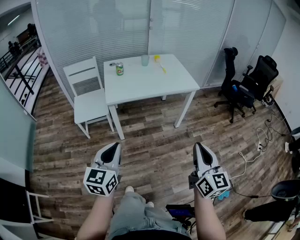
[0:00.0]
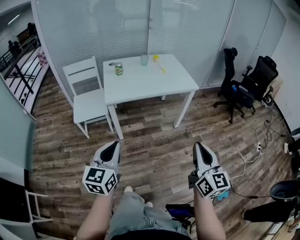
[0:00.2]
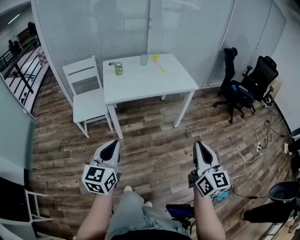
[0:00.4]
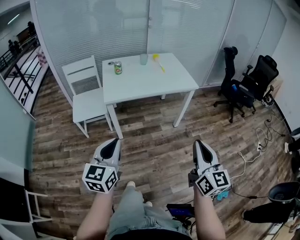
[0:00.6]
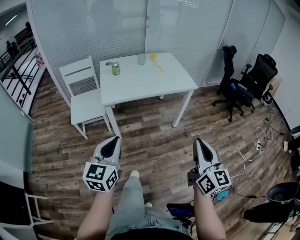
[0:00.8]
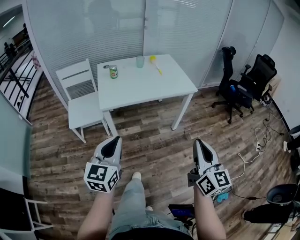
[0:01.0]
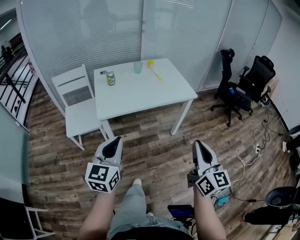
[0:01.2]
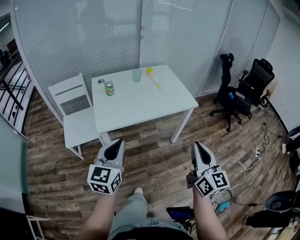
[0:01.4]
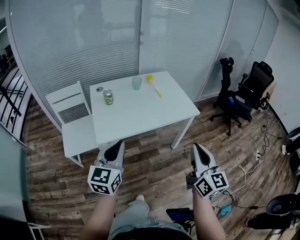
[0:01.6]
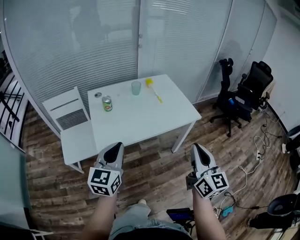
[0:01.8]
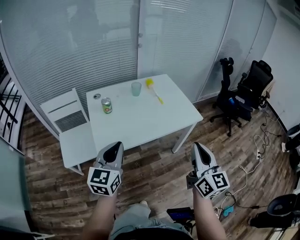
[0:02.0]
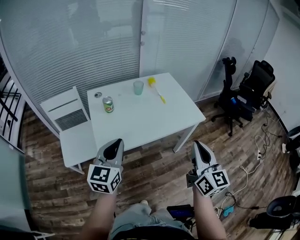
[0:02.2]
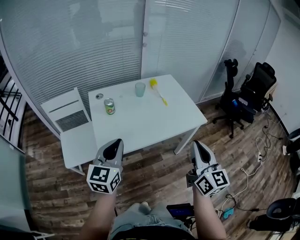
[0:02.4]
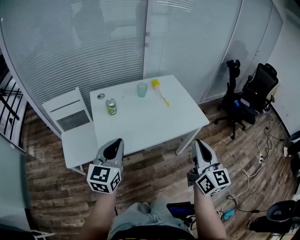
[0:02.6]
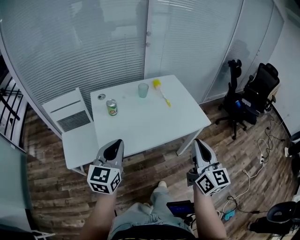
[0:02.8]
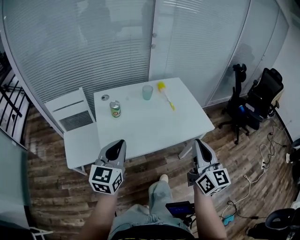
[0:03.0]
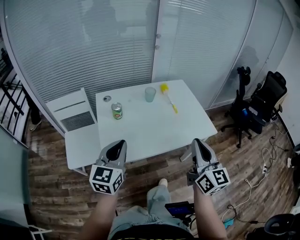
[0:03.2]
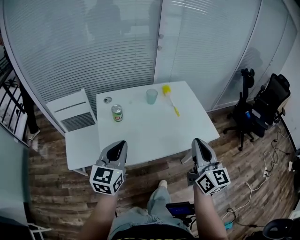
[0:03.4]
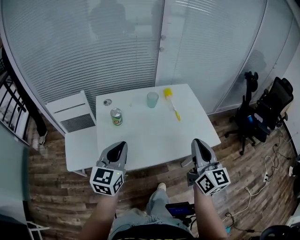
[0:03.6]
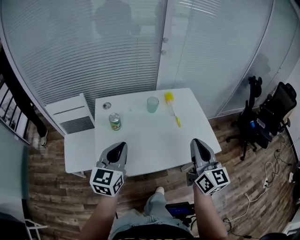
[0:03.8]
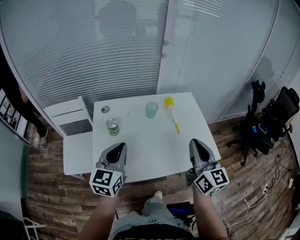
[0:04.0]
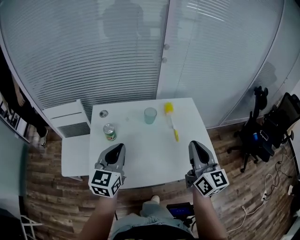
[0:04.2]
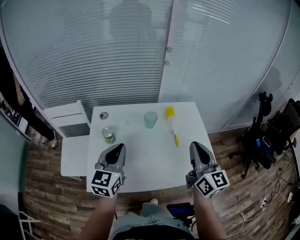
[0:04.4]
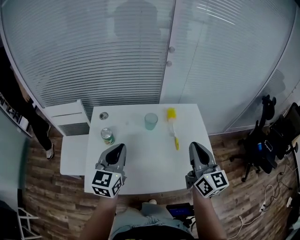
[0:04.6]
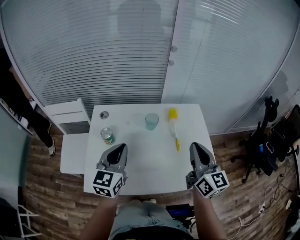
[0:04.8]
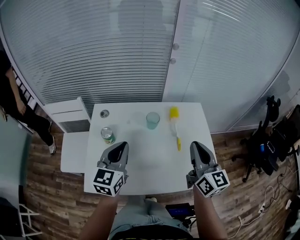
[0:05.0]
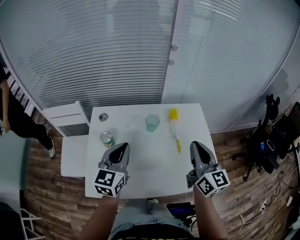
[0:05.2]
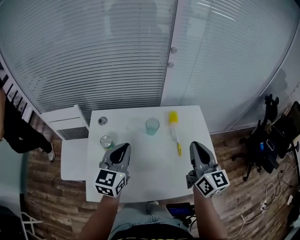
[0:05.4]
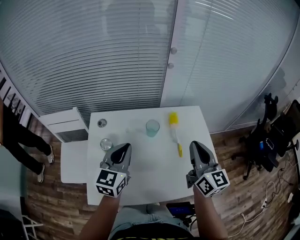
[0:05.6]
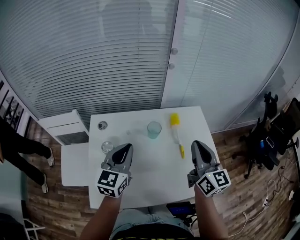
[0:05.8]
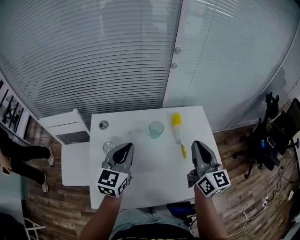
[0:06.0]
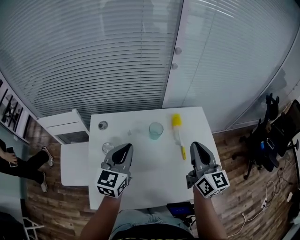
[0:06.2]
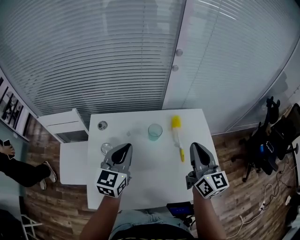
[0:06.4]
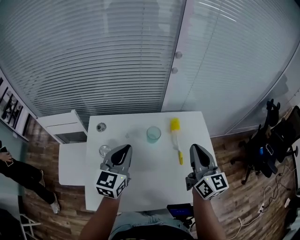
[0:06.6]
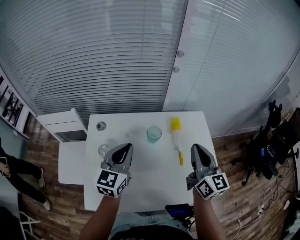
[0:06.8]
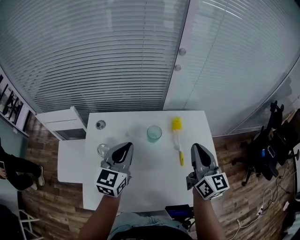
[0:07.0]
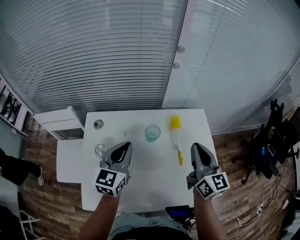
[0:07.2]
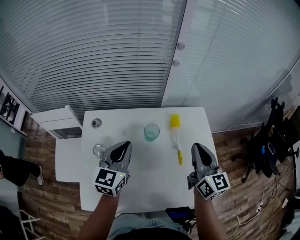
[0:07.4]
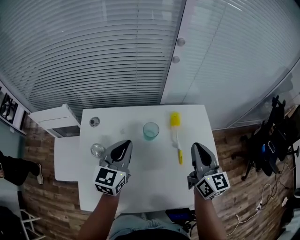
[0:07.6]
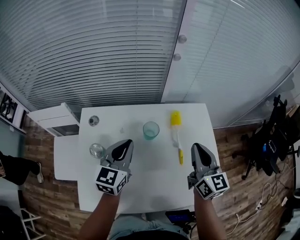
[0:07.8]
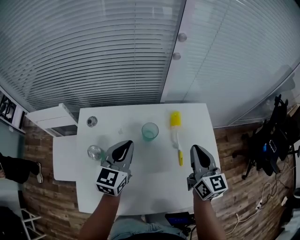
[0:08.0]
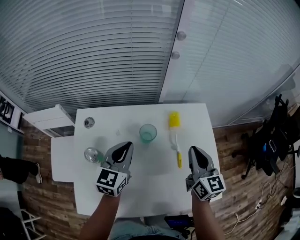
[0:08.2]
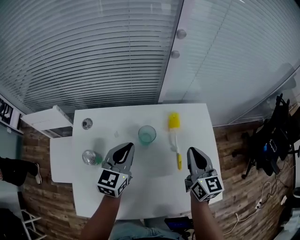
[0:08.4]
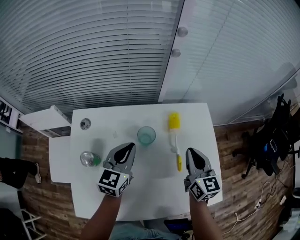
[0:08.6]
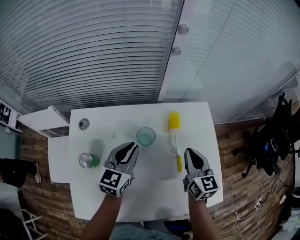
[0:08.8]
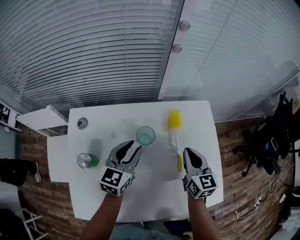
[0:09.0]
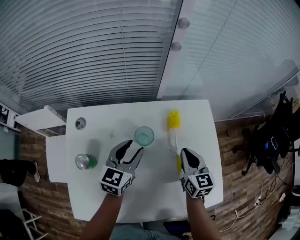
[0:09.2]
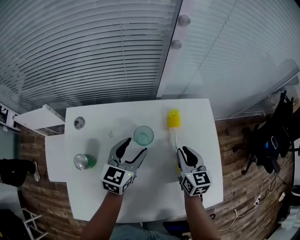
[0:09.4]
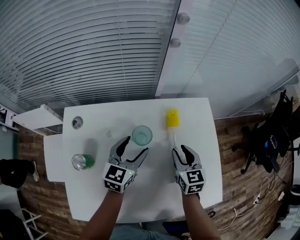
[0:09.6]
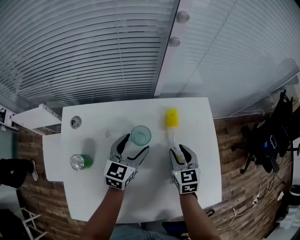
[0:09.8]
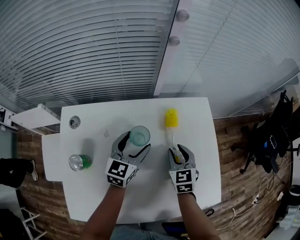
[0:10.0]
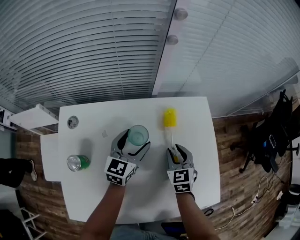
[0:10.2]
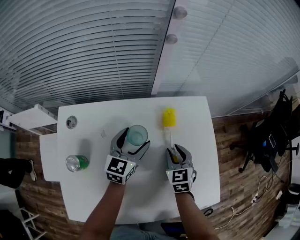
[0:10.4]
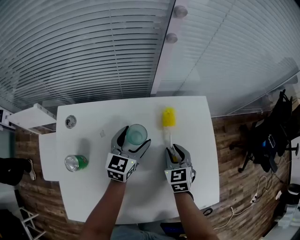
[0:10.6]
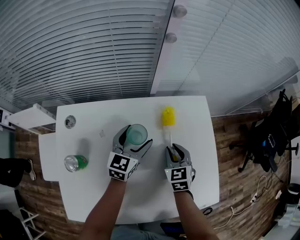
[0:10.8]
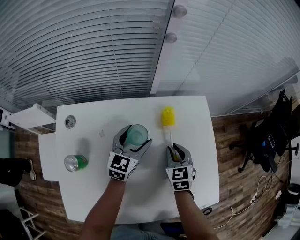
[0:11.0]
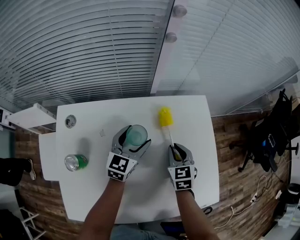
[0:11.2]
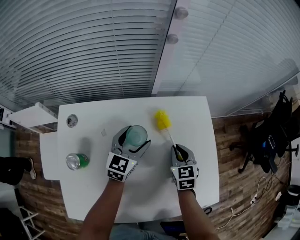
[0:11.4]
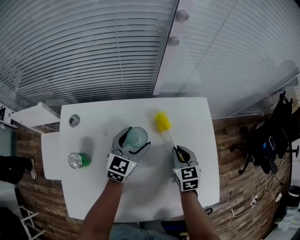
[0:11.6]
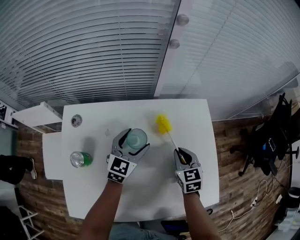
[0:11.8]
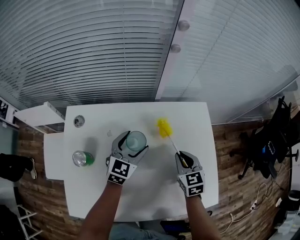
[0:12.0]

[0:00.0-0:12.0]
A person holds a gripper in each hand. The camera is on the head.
0:00.0 to 0:01.6: The two grippers go approximately 25 cm forward.
0:01.6 to 0:03.0: The right gripper shifts roughly 15 cm forward. The left gripper travels forward and to the left by approximately 15 cm.
0:03.0 to 0:04.4: The grippers both shift forward by about 25 cm.
0:04.4 to 0:06.0: Both grippers travel together forward, some 10 cm.
0:06.0 to 0:07.6: Both grippers travel together forward, approximately 5 cm.
0:07.6 to 0:09.0: The left gripper goes about 10 cm downward and forward; the right gripper goes approximately 15 cm downward.
0:09.0 to 0:10.4: The right gripper travels downward by approximately 10 cm, rotates some 30 degrees, and opens up; the left gripper moves forward and downward, some 10 cm, and opens.
0:10.4 to 0:12.0: The right gripper closes its fingers.

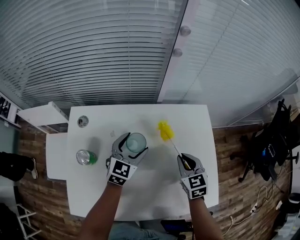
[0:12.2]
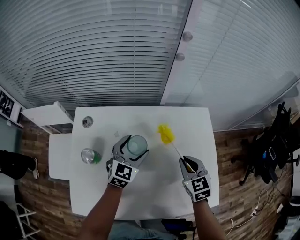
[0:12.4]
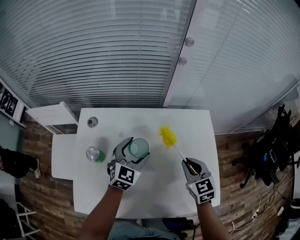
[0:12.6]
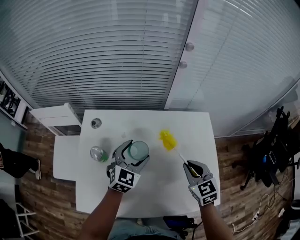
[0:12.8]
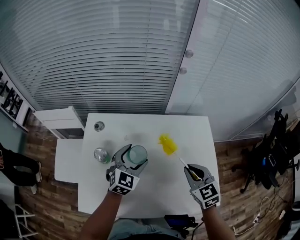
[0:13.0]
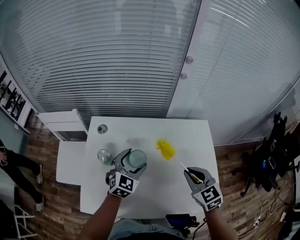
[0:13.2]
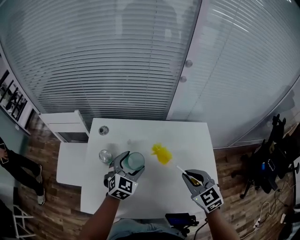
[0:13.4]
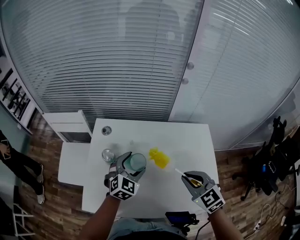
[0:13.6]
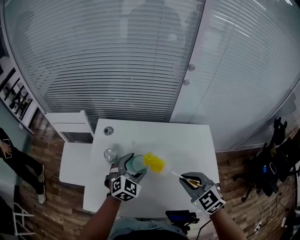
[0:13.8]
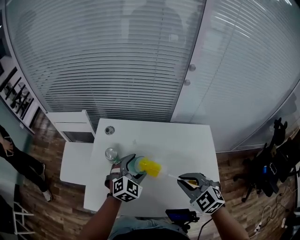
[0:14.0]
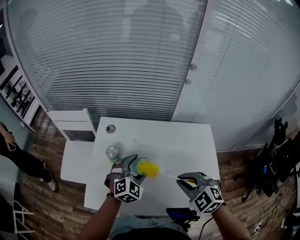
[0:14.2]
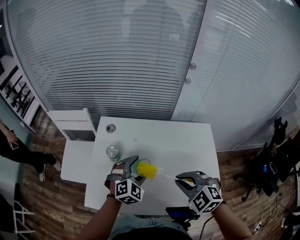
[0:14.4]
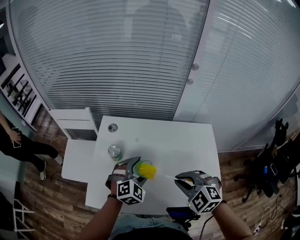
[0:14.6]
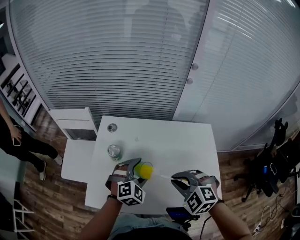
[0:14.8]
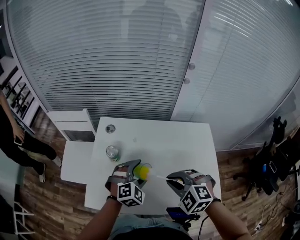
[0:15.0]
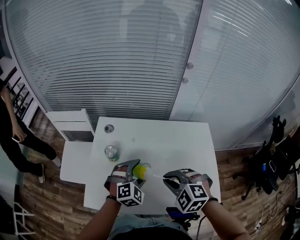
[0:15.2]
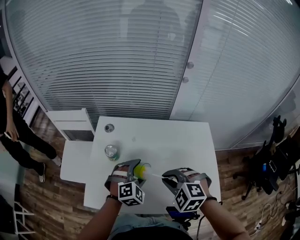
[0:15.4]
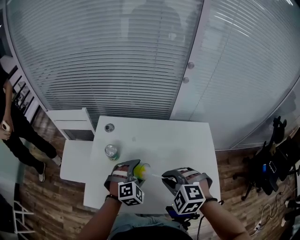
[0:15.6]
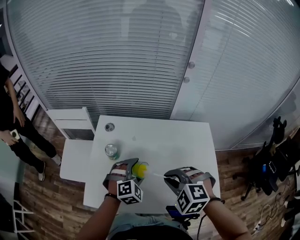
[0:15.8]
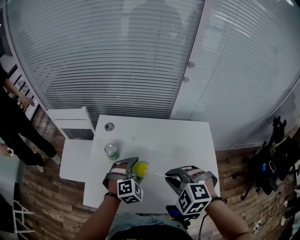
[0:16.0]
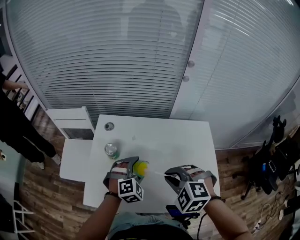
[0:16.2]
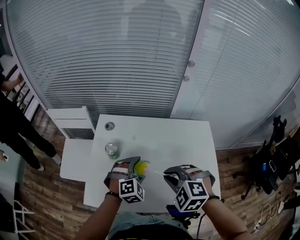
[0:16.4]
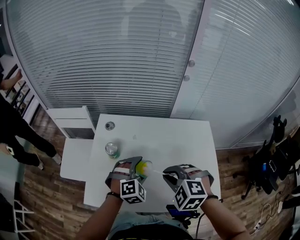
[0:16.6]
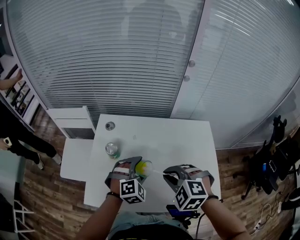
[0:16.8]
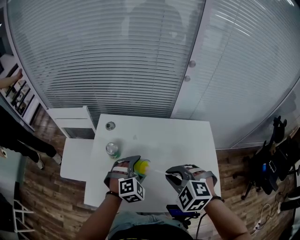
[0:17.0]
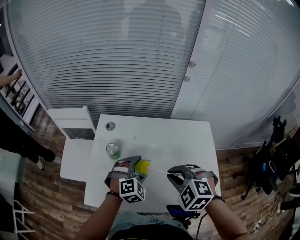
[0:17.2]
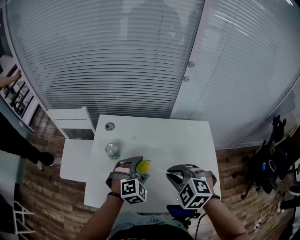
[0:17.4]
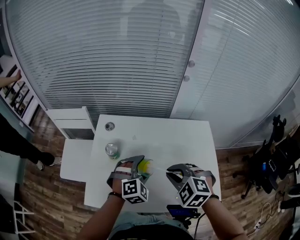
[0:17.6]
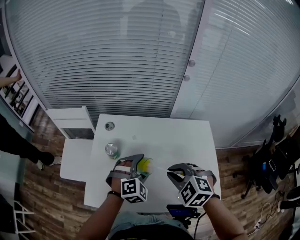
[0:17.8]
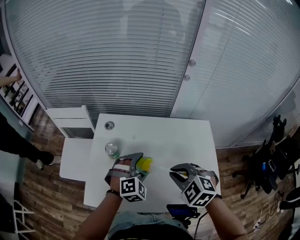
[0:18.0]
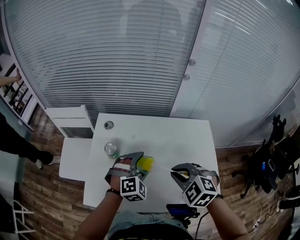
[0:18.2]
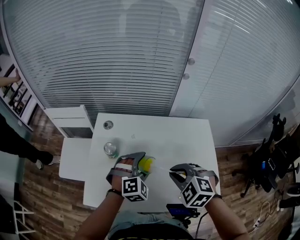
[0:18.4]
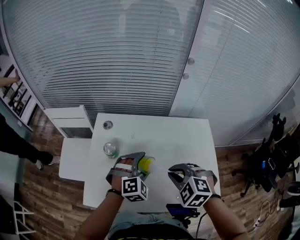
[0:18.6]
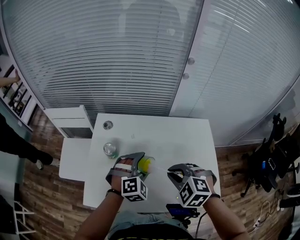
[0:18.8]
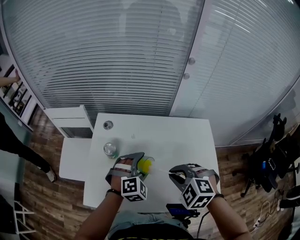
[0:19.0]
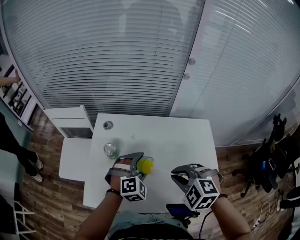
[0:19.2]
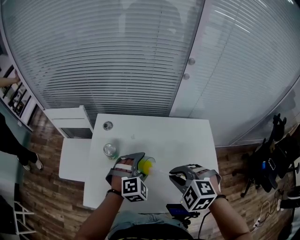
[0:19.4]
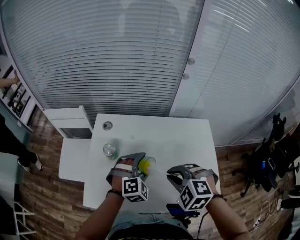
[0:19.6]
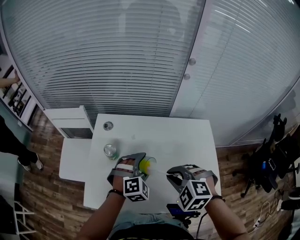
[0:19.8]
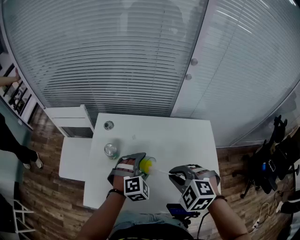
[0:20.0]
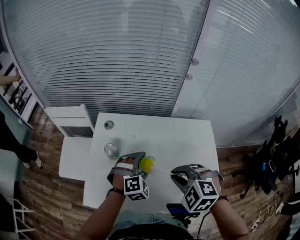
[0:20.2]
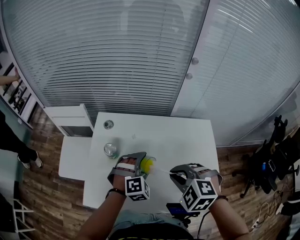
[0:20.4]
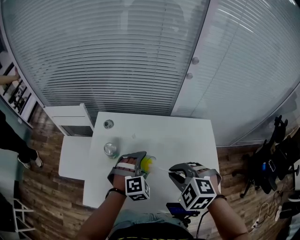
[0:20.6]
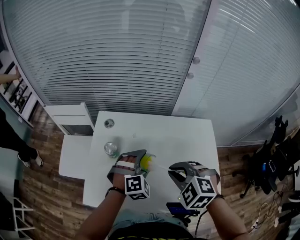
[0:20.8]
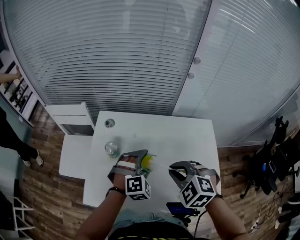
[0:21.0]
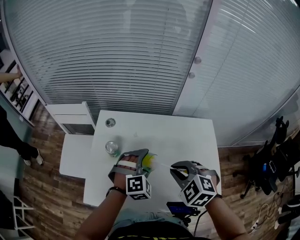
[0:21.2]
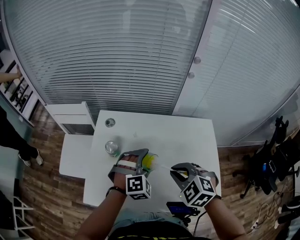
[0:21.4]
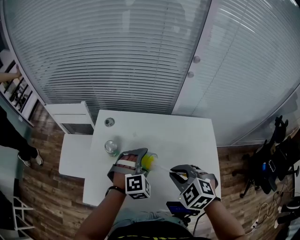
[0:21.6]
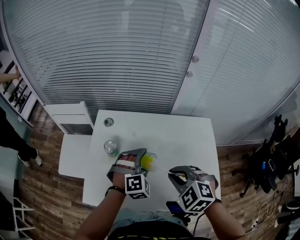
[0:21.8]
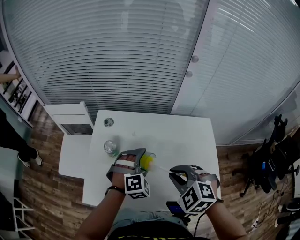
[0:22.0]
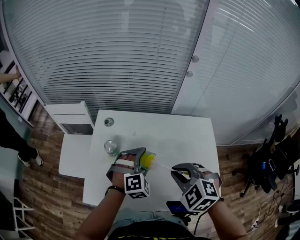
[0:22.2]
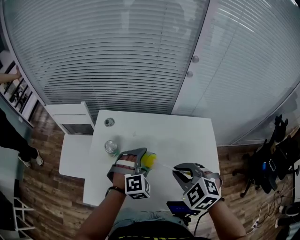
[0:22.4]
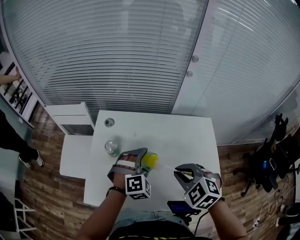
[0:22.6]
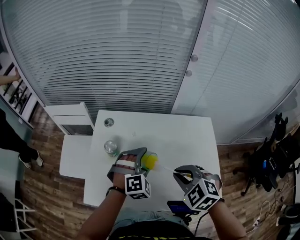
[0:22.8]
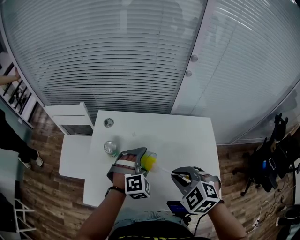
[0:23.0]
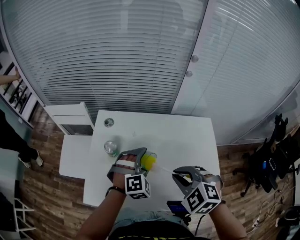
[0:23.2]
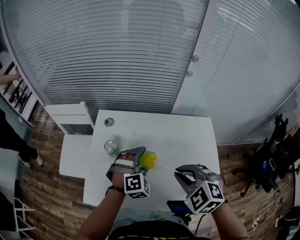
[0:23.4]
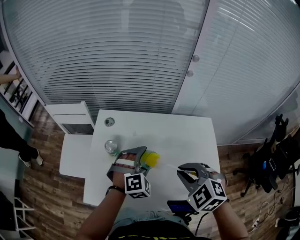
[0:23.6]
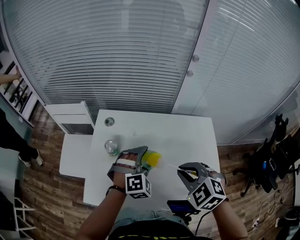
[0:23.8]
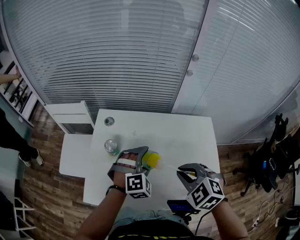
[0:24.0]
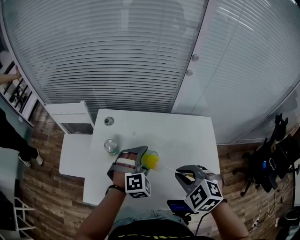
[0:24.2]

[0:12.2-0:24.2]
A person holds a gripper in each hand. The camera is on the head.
0:12.2 to 0:13.8: The left gripper heads backward, to the left and upward, covering about 15 cm, and turns by approximately 20 degrees; the right gripper shifts some 20 cm upward, backward and to the left, and turns by approximately 40 degrees.
0:13.8 to 0:15.2: The right gripper shifts roughly 5 cm to the left, and rotates roughly 30 degrees; the left gripper heads backward, covering about 5 cm.
0:15.2 to 0:22.6: There are only small adjustments of the grippers.
0:22.6 to 0:24.2: The grippers make only small movements.
